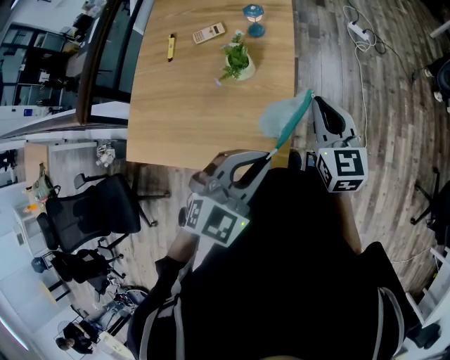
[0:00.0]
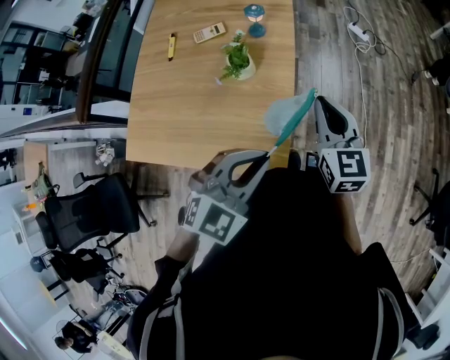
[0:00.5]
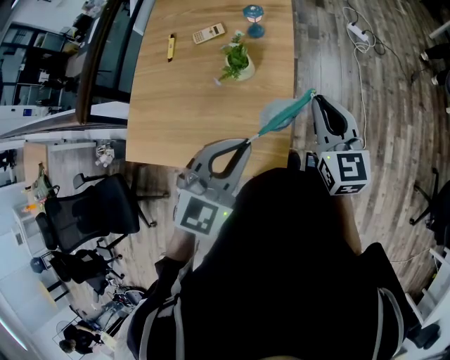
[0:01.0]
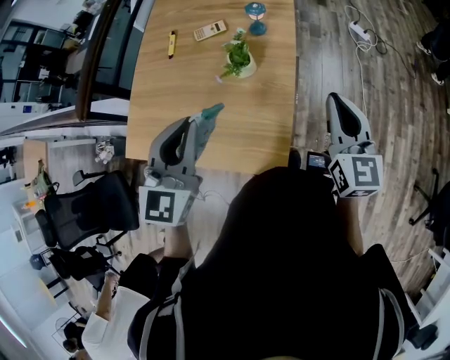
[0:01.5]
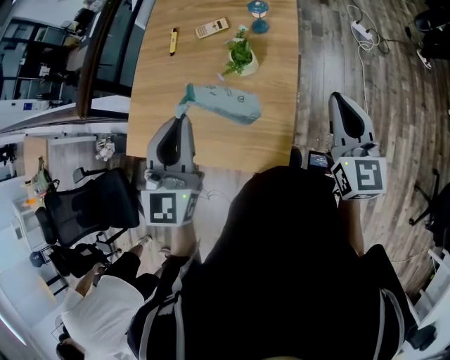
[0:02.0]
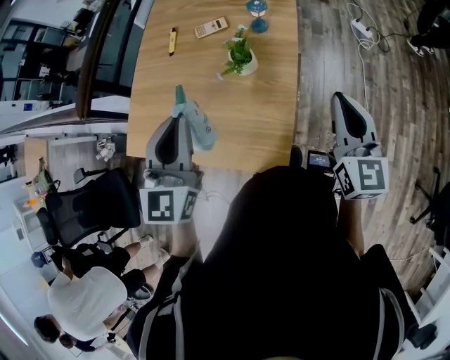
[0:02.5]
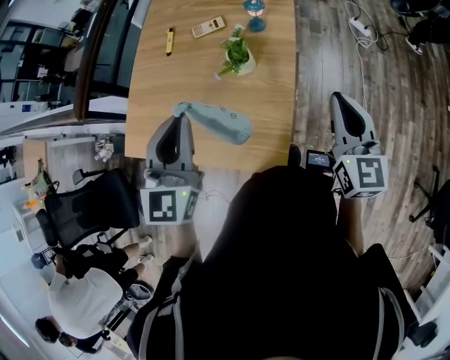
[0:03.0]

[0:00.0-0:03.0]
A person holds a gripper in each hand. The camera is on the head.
0:00.0 to 0:01.5: The left gripper heads to the left, covering roughly 15 cm, and swivels about 40 degrees.
0:01.5 to 0:03.0: The grippers make only small movements.

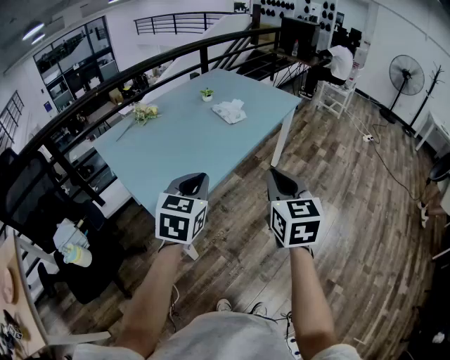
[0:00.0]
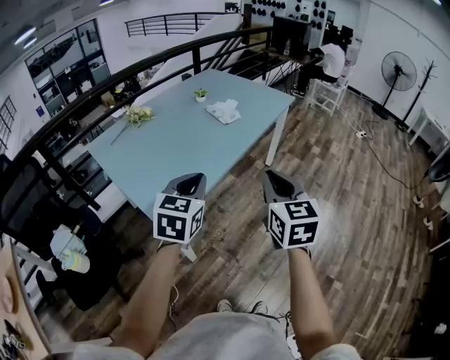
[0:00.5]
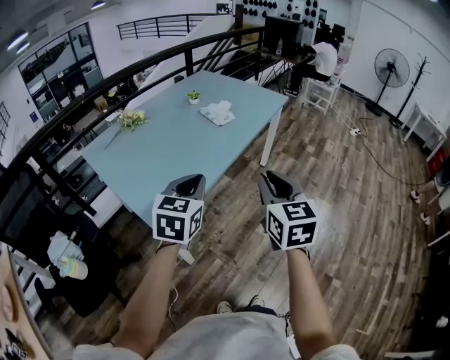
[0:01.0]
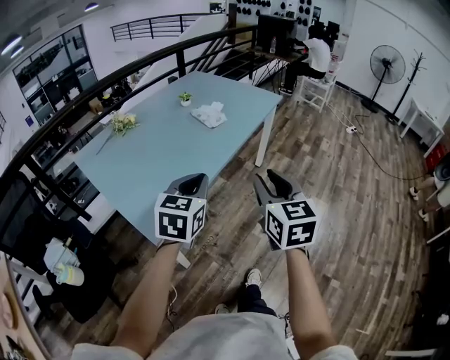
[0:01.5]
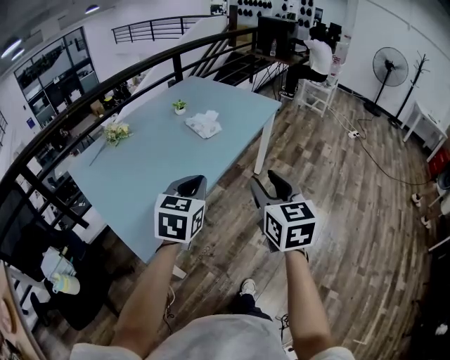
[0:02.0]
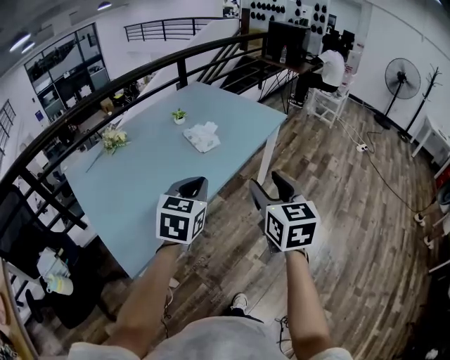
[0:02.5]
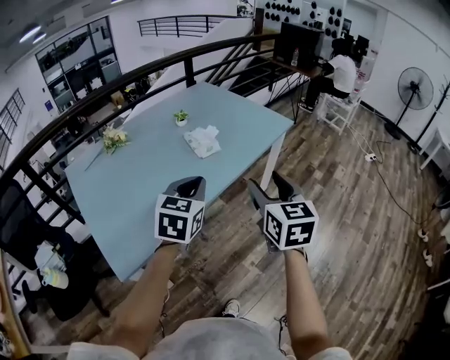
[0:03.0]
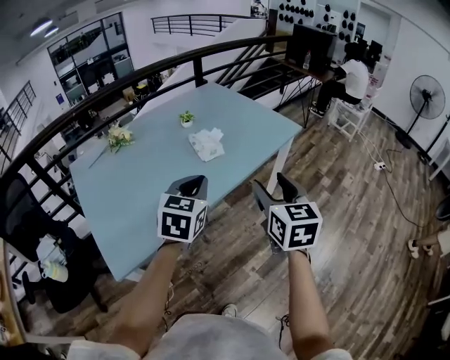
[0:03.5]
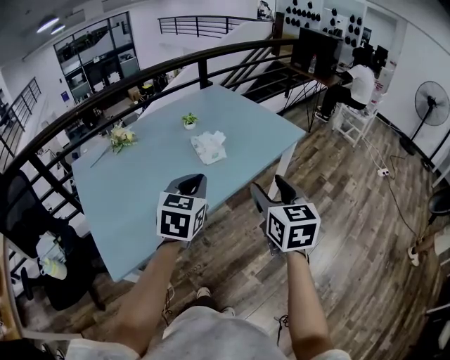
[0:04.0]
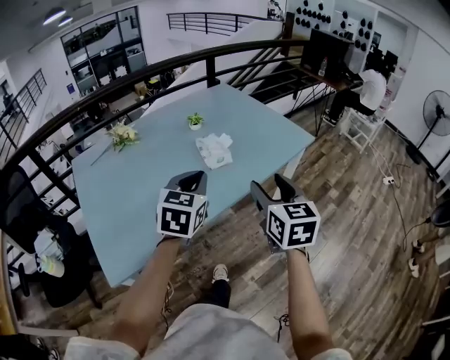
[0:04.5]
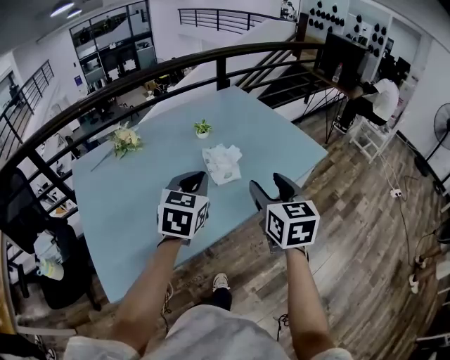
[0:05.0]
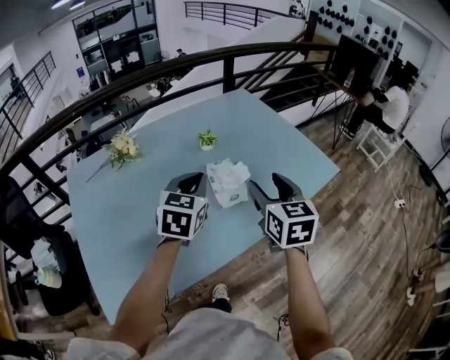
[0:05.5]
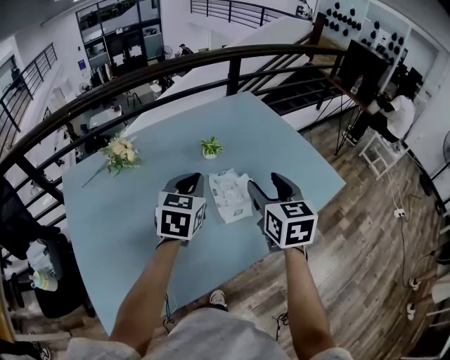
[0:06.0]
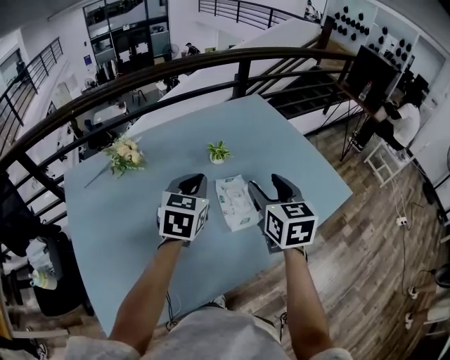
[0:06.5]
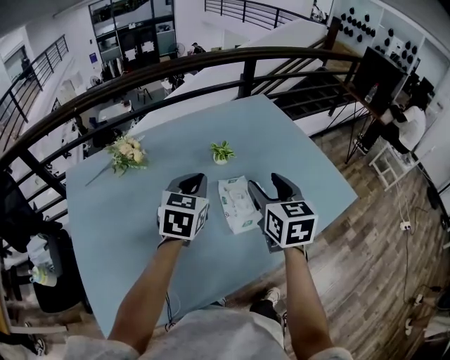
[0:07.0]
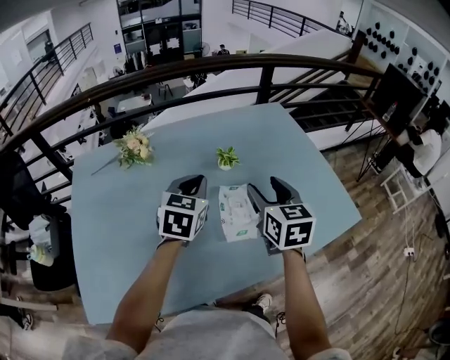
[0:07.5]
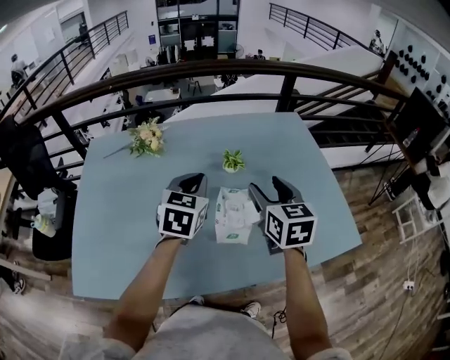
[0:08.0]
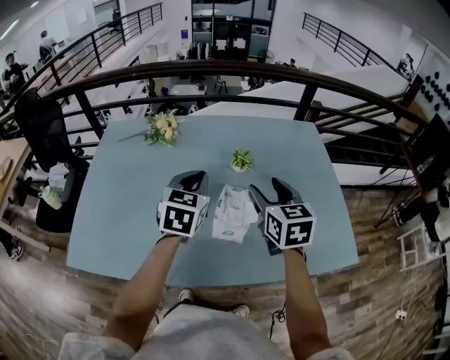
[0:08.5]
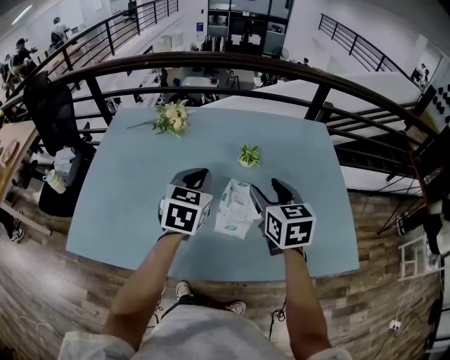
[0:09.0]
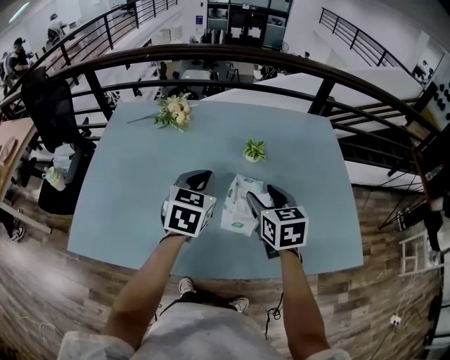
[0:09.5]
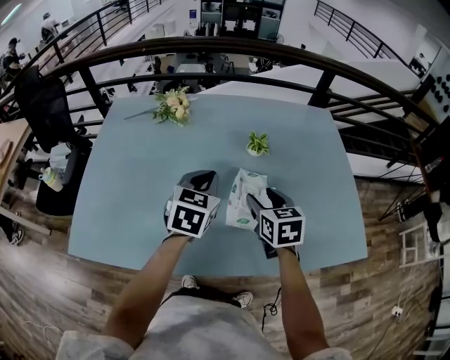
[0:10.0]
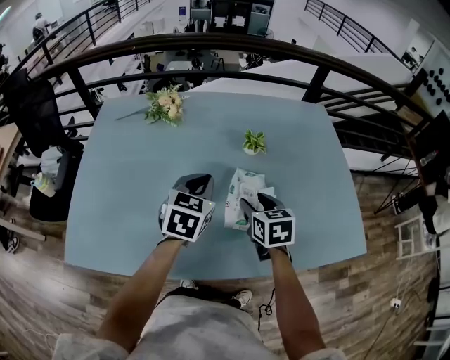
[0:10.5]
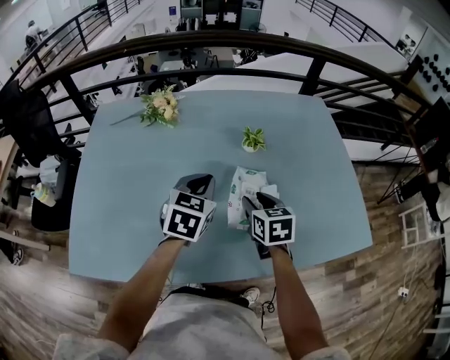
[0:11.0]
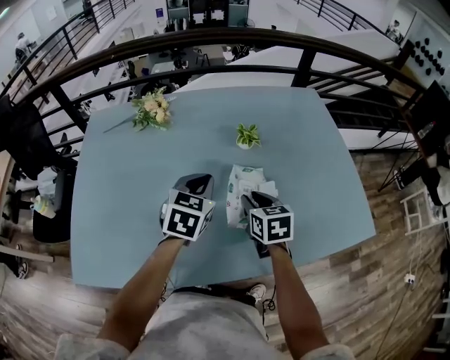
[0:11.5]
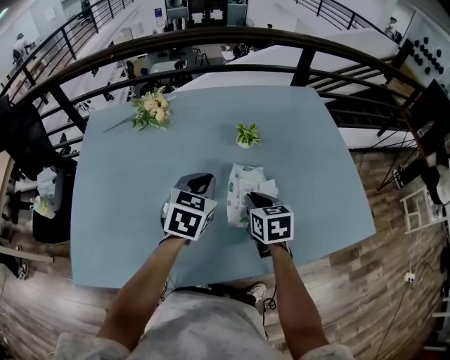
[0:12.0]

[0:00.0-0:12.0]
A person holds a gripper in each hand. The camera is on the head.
0:00.0 to 0:02.0: The right gripper moves forward, roughly 10 cm, and opens; the left gripper shifts some 15 cm forward and to the right.
0:02.0 to 0:04.0: The grippers both shift forward and to the right by approximately 20 cm.
0:04.0 to 0:06.0: The grippers both shift forward by some 30 cm.
0:06.0 to 0:08.0: The right gripper travels forward by approximately 10 cm, and swivels some 20 degrees.
0:08.0 to 0:10.0: The right gripper goes some 10 cm downward, while the left gripper changes place by about 5 cm.
0:10.0 to 0:12.0: The right gripper travels downward by some 5 cm, and closes.

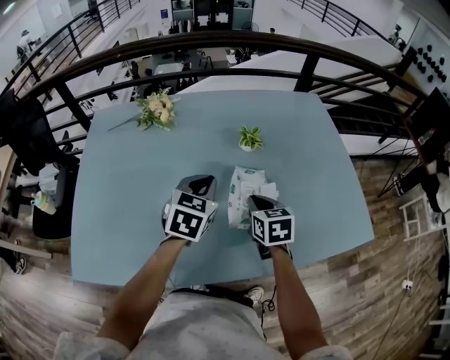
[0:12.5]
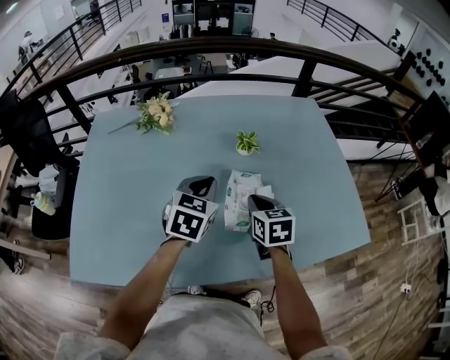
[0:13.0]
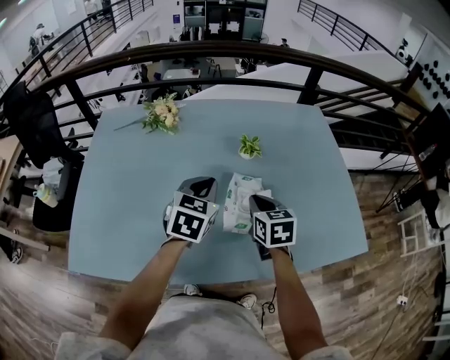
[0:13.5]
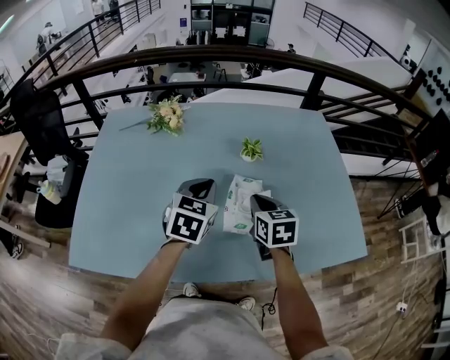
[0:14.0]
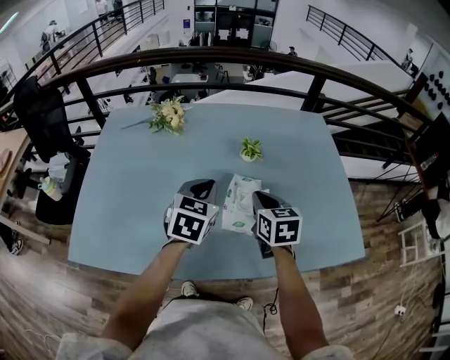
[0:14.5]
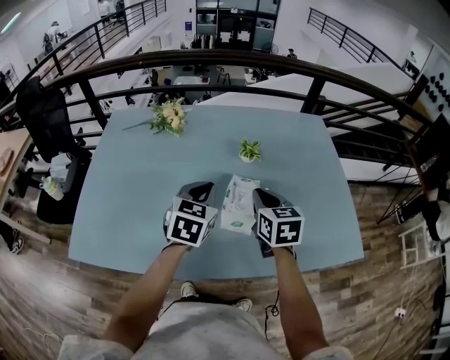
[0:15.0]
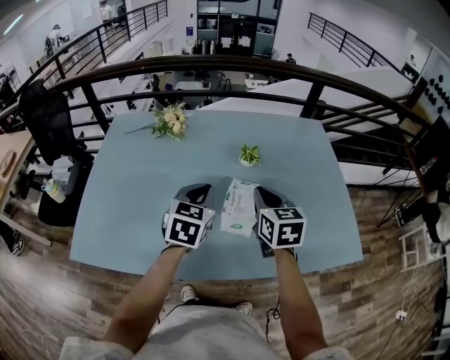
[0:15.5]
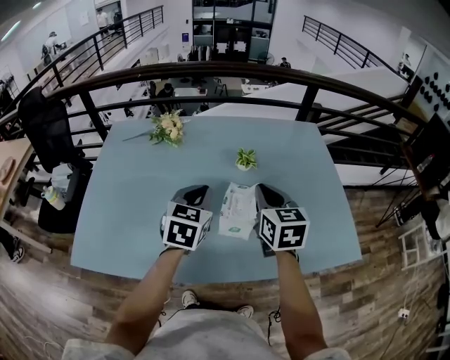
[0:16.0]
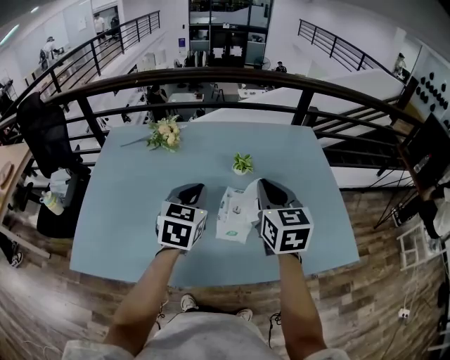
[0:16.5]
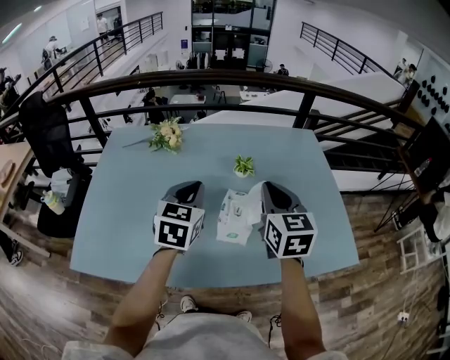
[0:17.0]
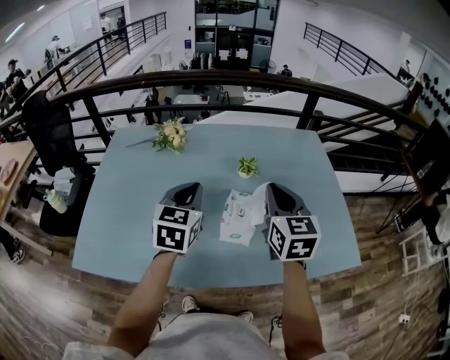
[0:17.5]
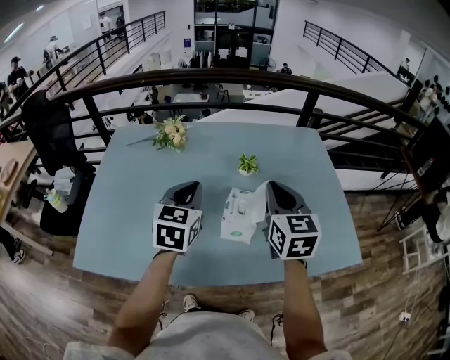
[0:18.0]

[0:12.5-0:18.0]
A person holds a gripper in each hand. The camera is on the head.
0:12.5 to 0:14.5: The right gripper heads upward, covering about 5 cm.
0:14.5 to 0:16.0: The right gripper is displaced upward by approximately 10 cm.
0:16.0 to 0:18.0: The left gripper moves some 5 cm; the right gripper is displaced upward by some 5 cm.

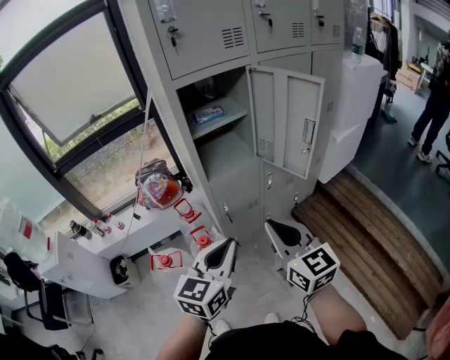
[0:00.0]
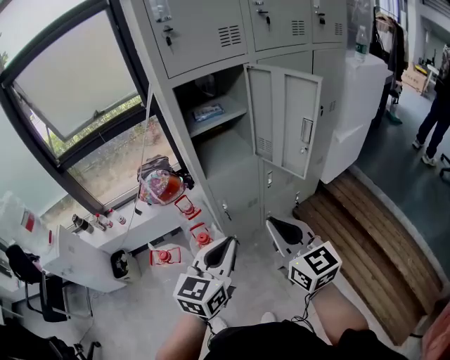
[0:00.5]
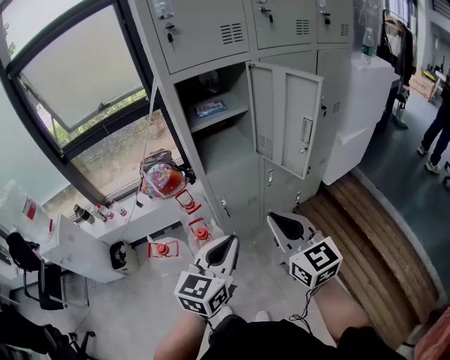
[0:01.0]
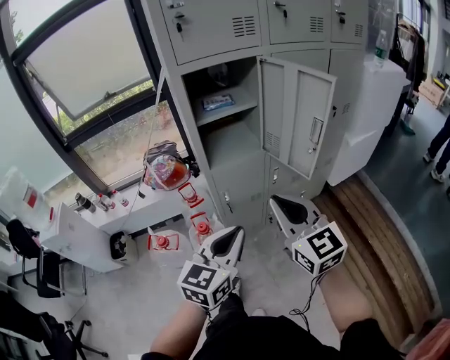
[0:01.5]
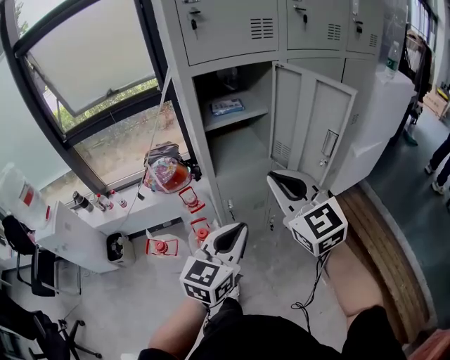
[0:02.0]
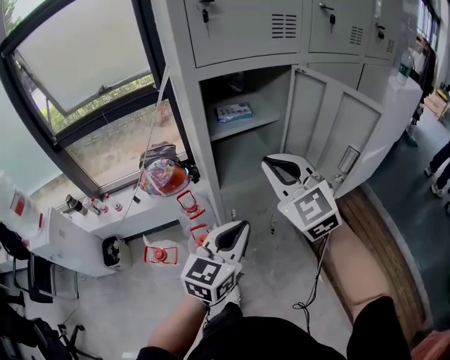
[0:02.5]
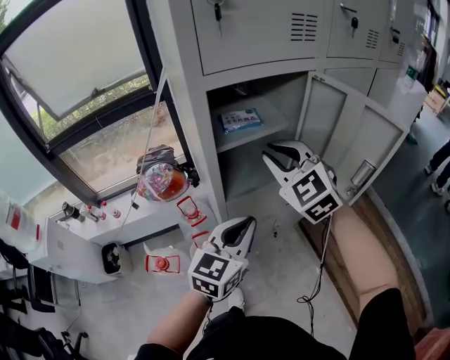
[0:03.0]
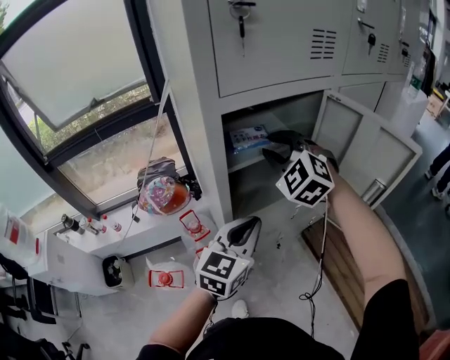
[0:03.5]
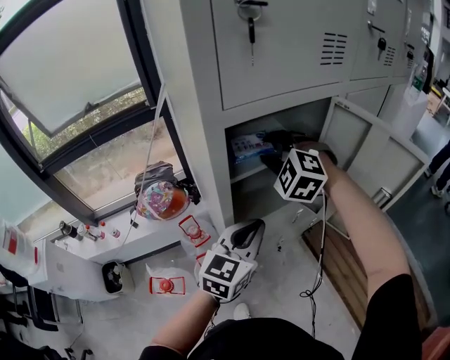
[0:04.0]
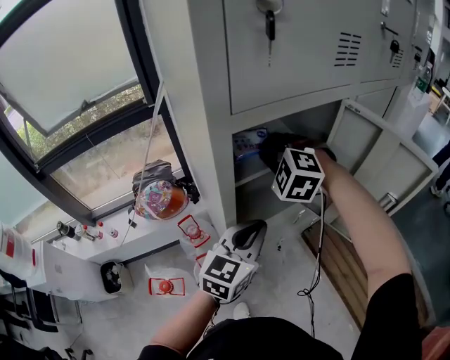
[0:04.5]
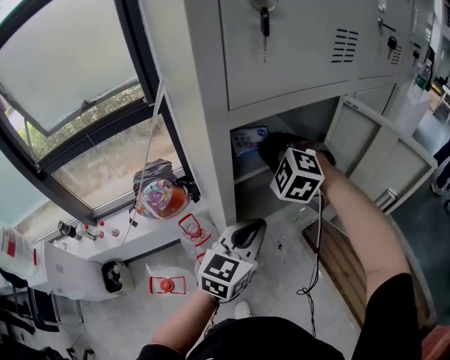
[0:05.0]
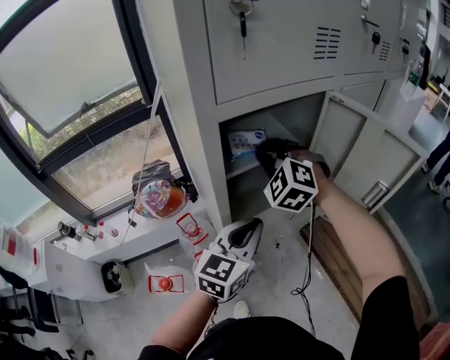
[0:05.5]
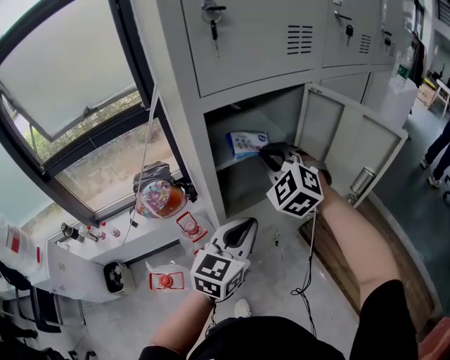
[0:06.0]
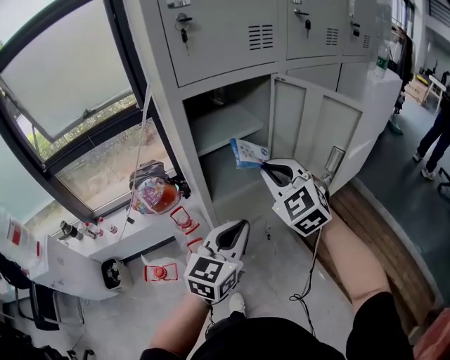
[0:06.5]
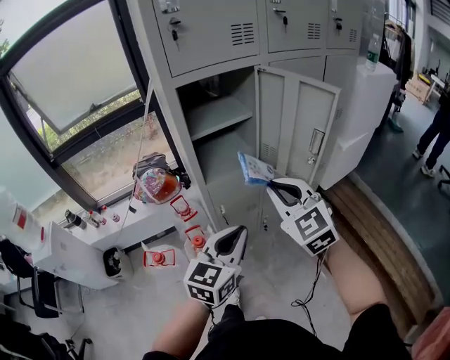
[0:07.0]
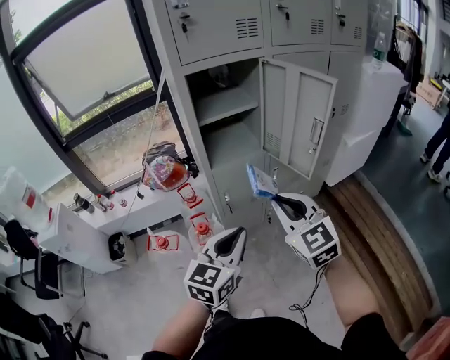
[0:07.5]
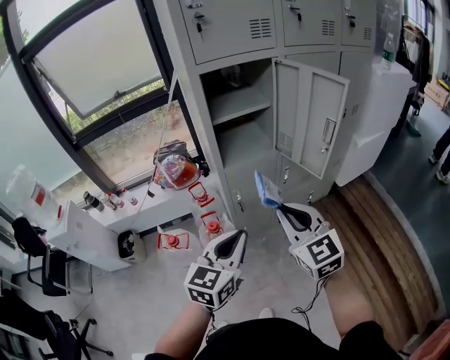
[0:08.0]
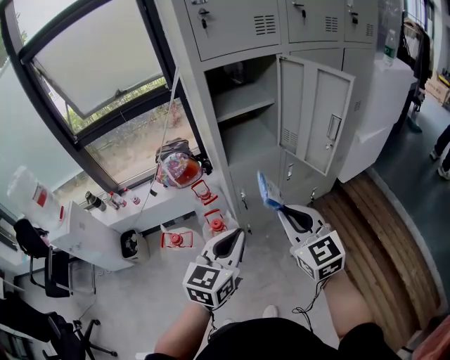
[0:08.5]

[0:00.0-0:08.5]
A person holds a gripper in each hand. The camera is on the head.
0:00.0 to 0:02.0: The right gripper travels forward and upward by some 15 cm, and rotates roughly 20 degrees; the left gripper travels forward by some 5 cm.
0:02.0 to 0:04.0: Both grippers travel together forward, roughly 25 cm. The right gripper rotates around the line of its fingers by approximately 40 degrees, counterclockwise from behind, and opens up.
0:04.0 to 0:06.5: The left gripper heads backward and to the right, covering some 15 cm, while the right gripper heads backward and to the right, covering roughly 20 cm, changes its angle by approximately 30 degrees, and closes its fingers.
0:06.5 to 0:08.5: Both grippers travel together backward, roughly 20 cm. The right gripper rotates some 30 degrees.
